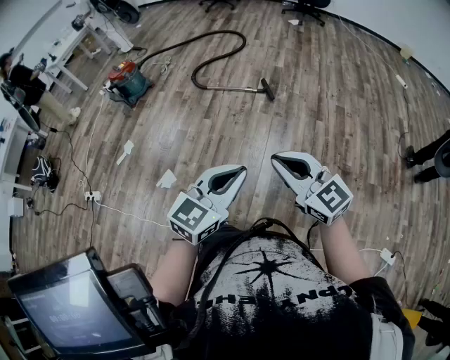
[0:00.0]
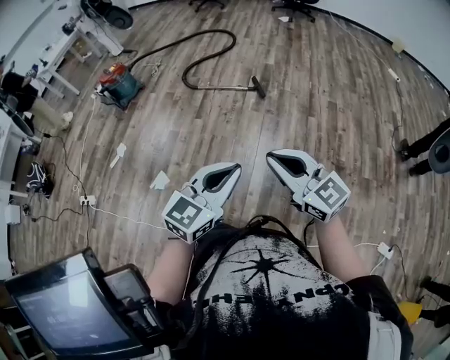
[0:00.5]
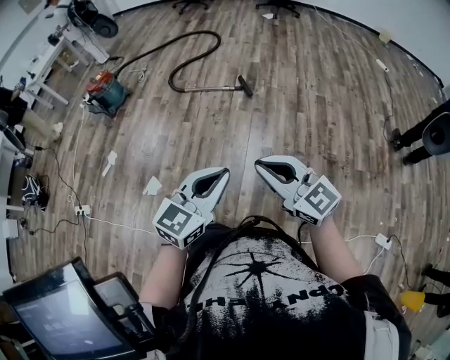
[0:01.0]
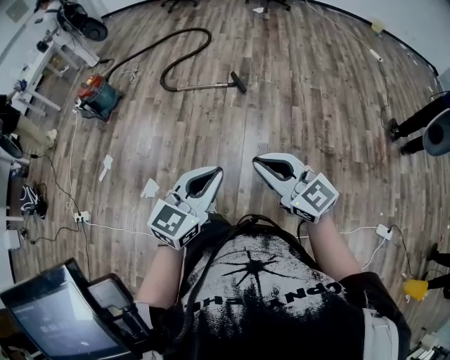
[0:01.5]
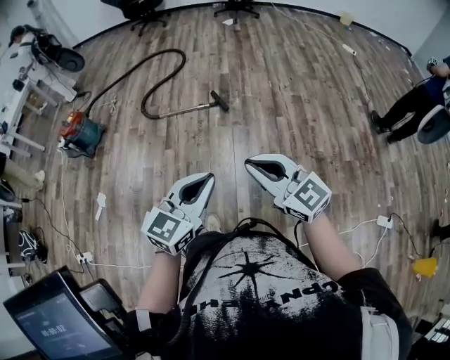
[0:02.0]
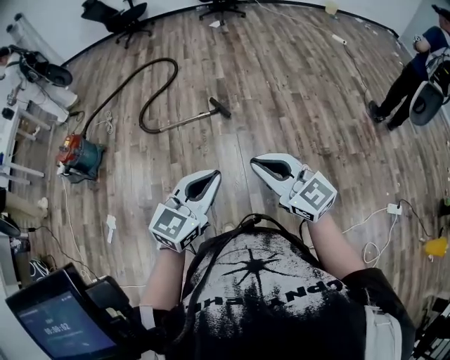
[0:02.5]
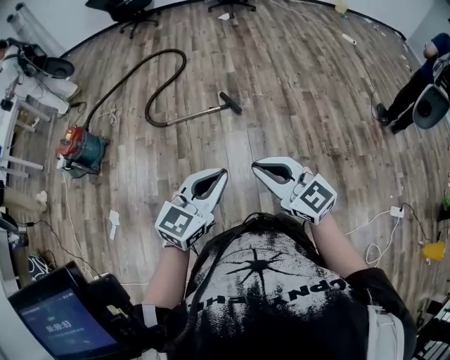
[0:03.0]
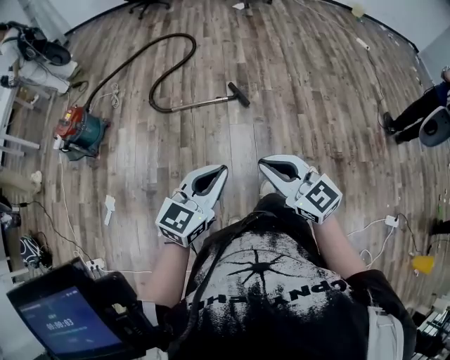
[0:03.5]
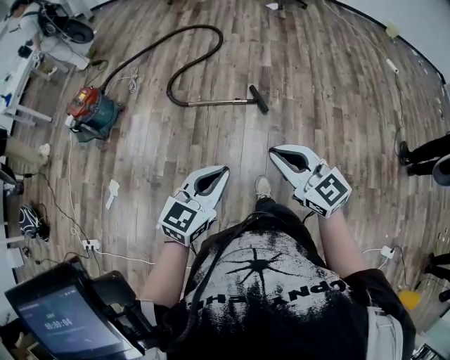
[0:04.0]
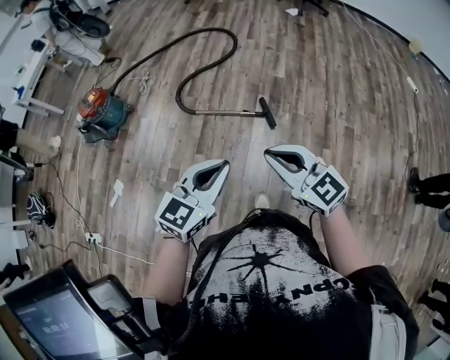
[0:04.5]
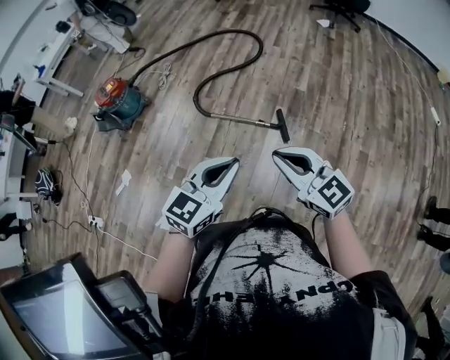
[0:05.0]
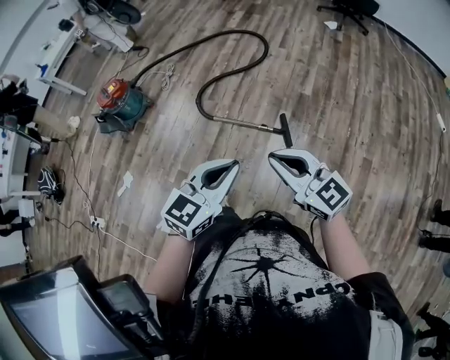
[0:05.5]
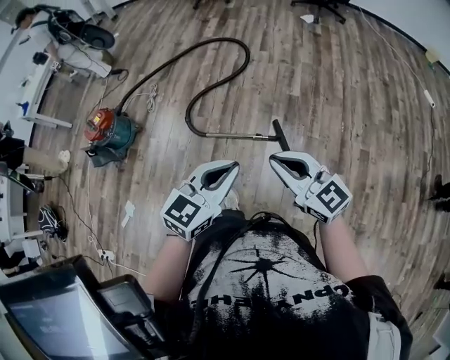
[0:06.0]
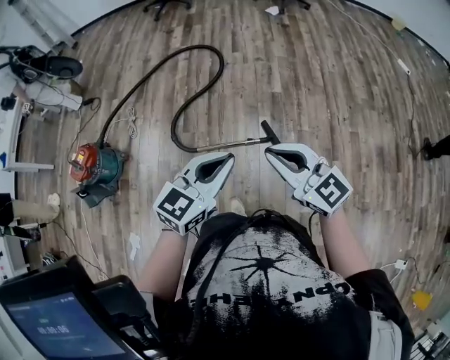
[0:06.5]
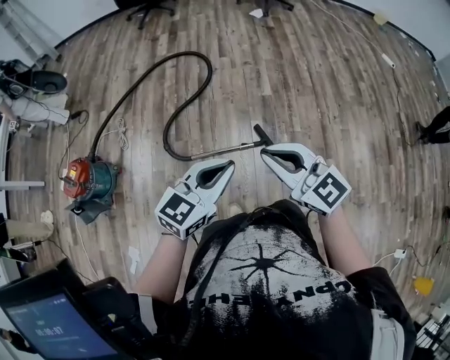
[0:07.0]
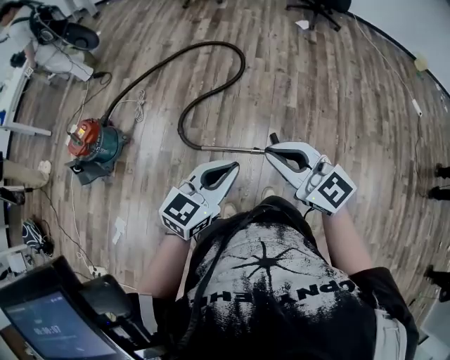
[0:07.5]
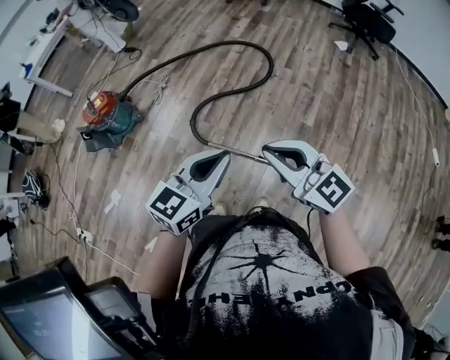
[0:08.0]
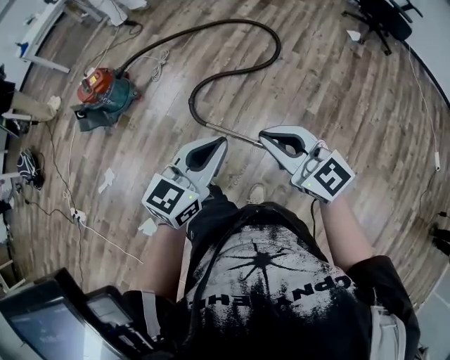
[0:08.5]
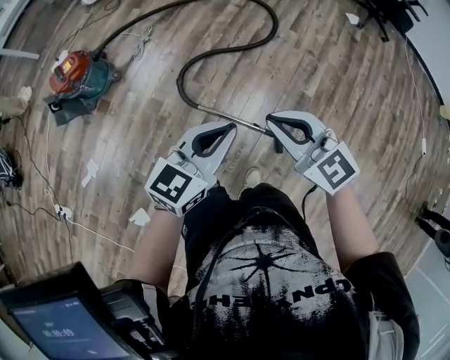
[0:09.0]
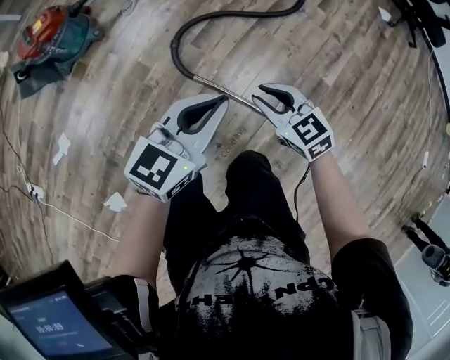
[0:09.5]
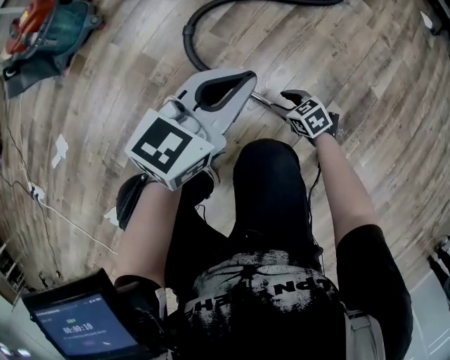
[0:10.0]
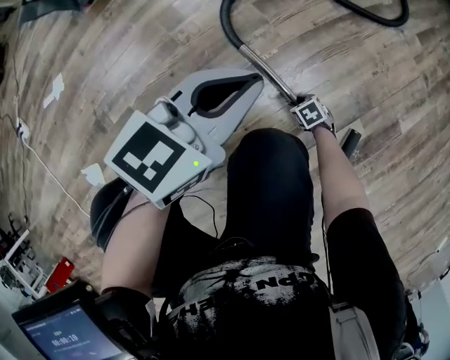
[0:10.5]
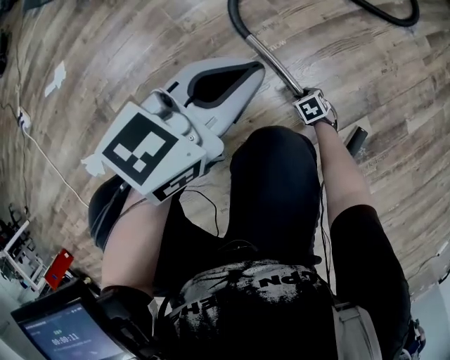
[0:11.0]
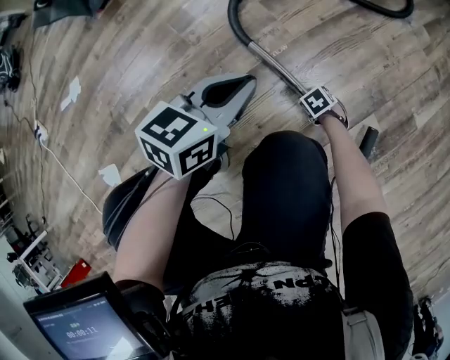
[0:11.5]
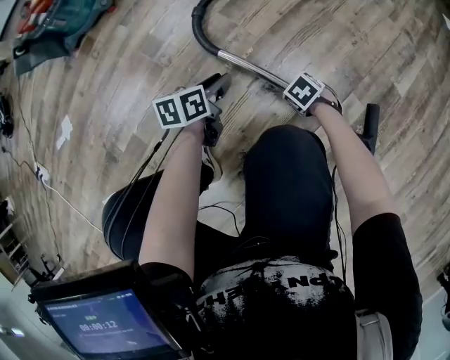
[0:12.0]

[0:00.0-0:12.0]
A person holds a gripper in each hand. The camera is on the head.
0:00.0 to 0:02.0: Both grippers move forward, some 10 cm.
0:02.0 to 0:04.0: The two grippers go about 30 cm forward and to the left.
0:04.0 to 0:06.0: The grippers both shift forward by approximately 30 cm.
0:06.0 to 0:08.0: The left gripper moves some 20 cm, while the right gripper moves some 20 cm.
0:08.0 to 0:10.0: The right gripper heads downward, covering some 80 cm, tilts its fingers about 50 degrees downward, and opens. Meanwhile the left gripper heads downward and forward, covering some 50 cm.
0:10.0 to 0:12.0: The right gripper travels downward by roughly 10 cm, and swivels about 30 degrees; the left gripper heads downward, covering some 30 cm, rotates around the line of its fingers by approximately 40 degrees, counterclockwise from behind, and opens up.

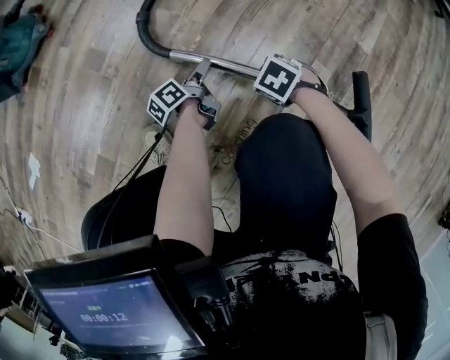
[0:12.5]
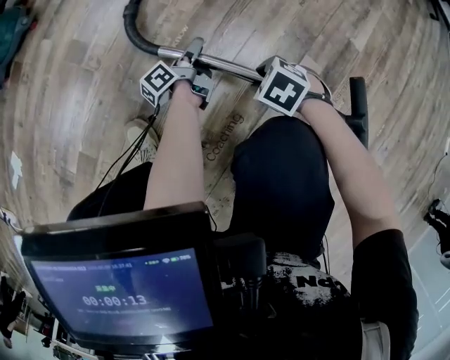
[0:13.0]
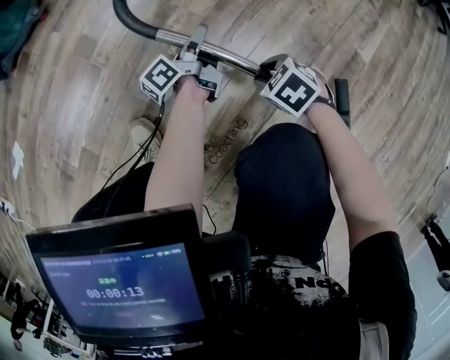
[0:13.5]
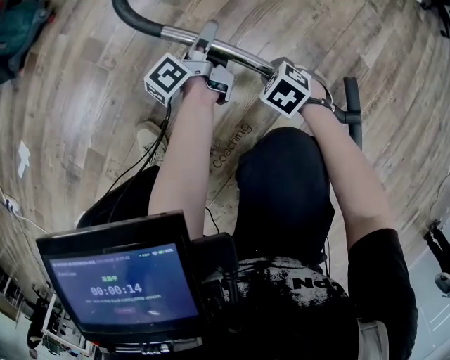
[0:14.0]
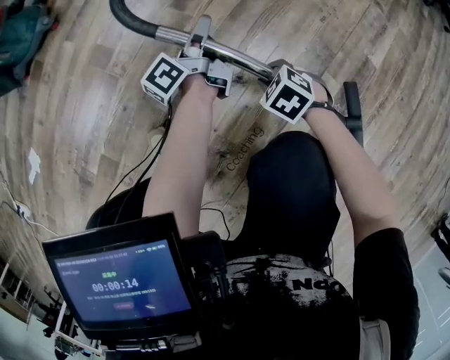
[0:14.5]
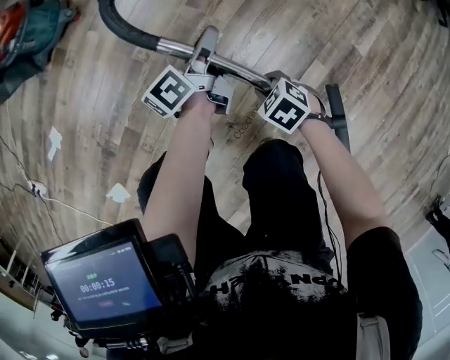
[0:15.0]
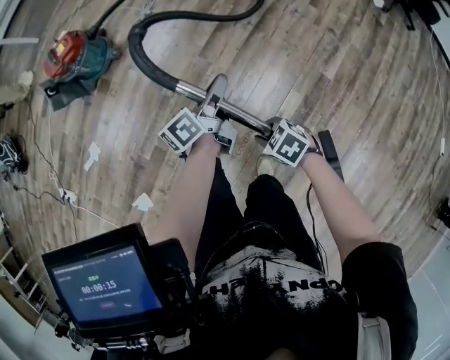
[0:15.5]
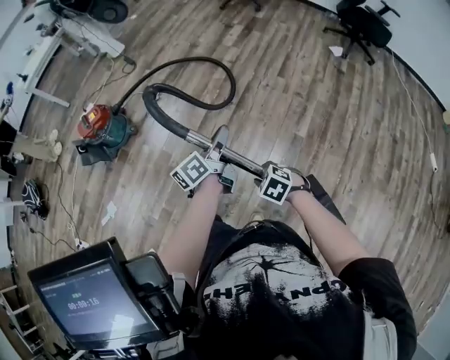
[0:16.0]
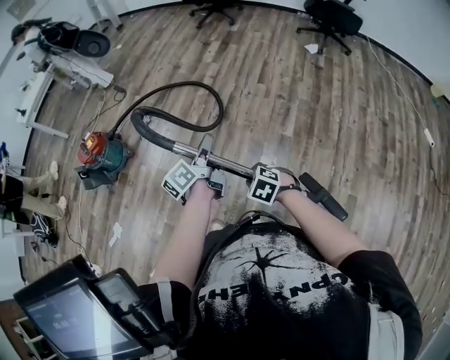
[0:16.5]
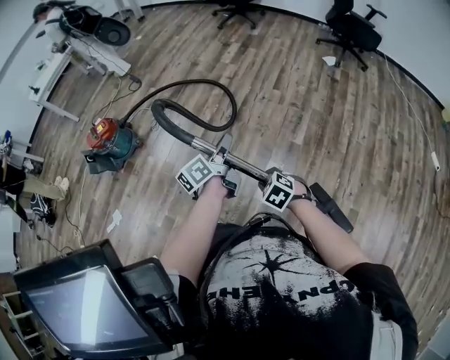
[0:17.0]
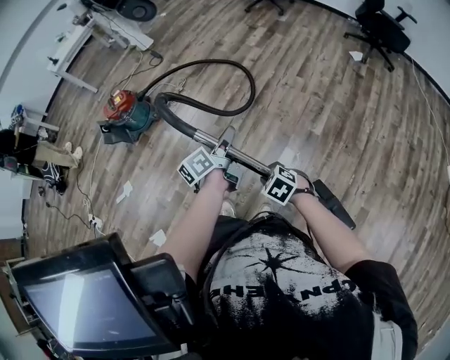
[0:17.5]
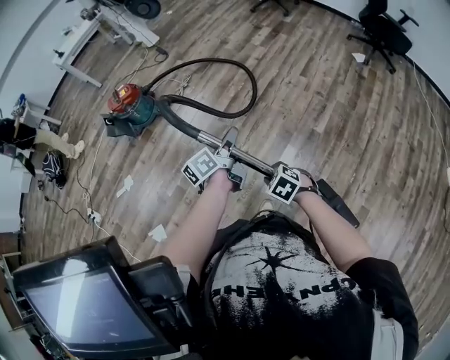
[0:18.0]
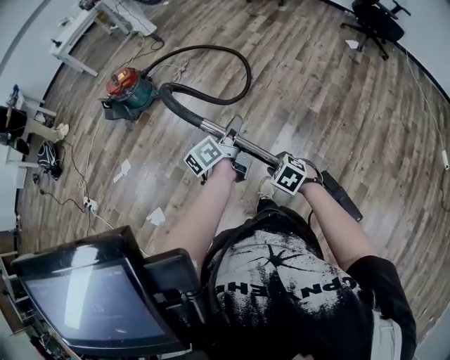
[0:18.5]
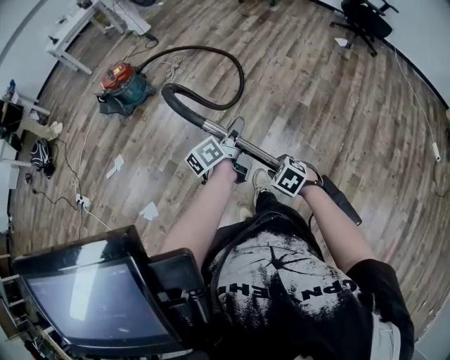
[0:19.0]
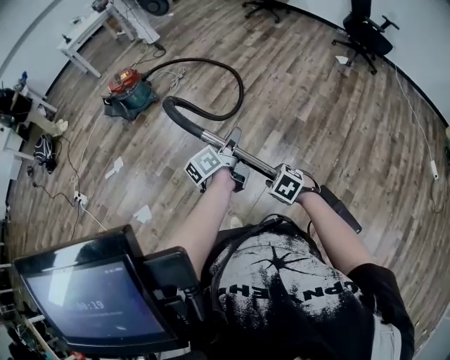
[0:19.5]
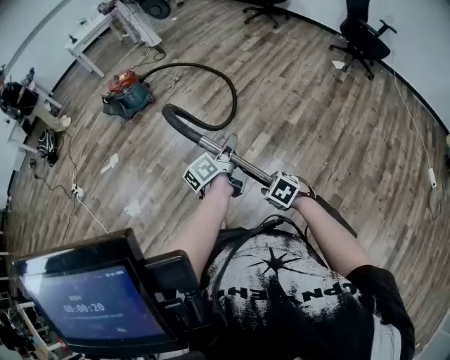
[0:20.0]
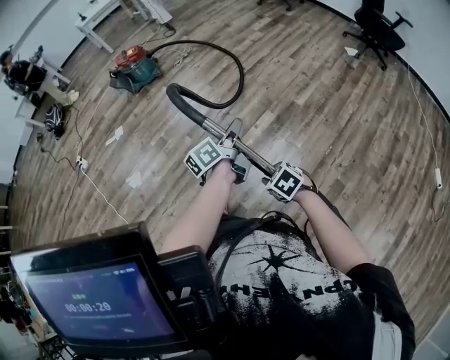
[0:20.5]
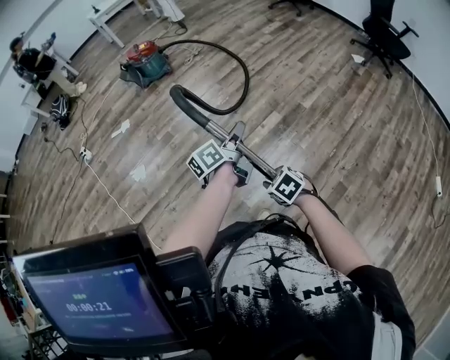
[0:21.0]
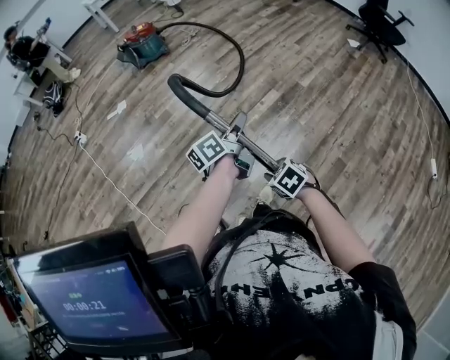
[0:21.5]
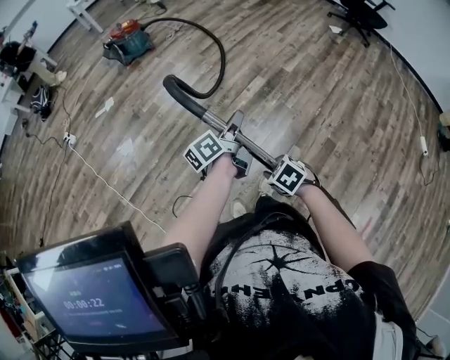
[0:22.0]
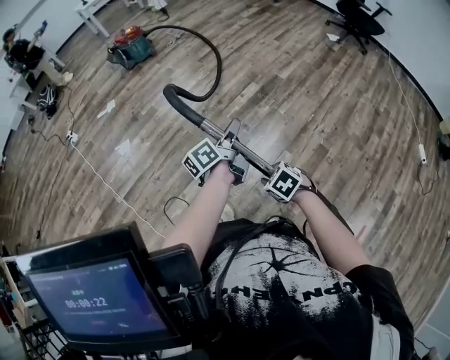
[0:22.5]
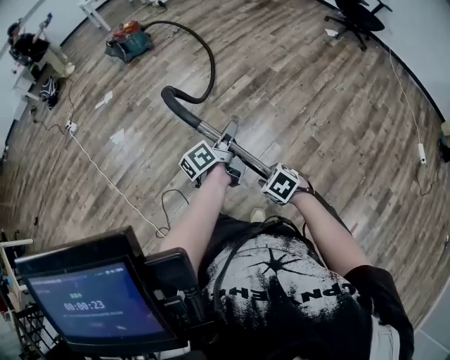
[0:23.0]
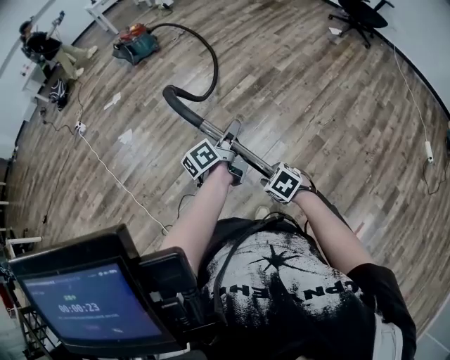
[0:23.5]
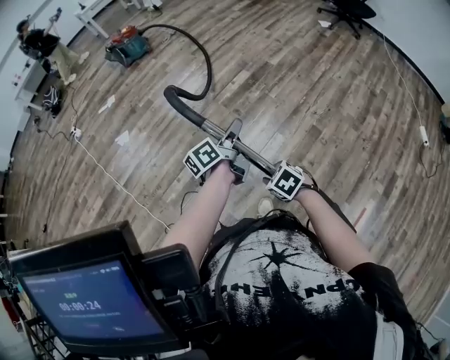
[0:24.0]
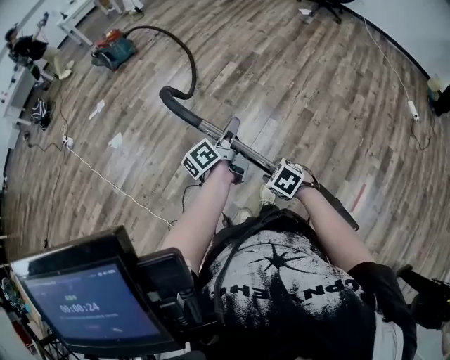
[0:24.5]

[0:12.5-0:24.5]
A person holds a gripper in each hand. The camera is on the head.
0:12.5 to 0:14.5: The left gripper heads upward, covering roughly 15 cm, changes its angle by some 30 degrees, and closes its fingers. The right gripper ends up some 5 cm from where it was, and closes up.
0:14.5 to 0:16.5: Both grippers travel together upward, about 60 cm. The left gripper turns by roughly 30 degrees.
0:16.5 to 0:18.5: Both grippers move backward and to the left, about 20 cm.
0:18.5 to 0:20.5: Both grippers move backward, about 30 cm.
0:20.5 to 0:22.5: The two grippers go approximately 30 cm backward.
0:22.5 to 0:24.5: Both grippers travel together backward, roughly 20 cm.

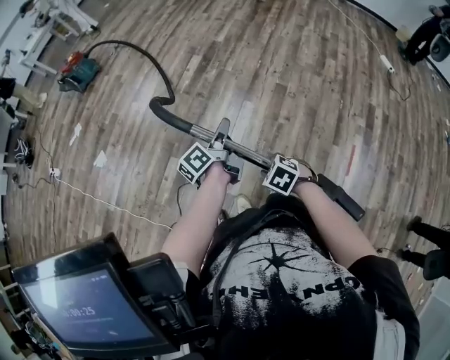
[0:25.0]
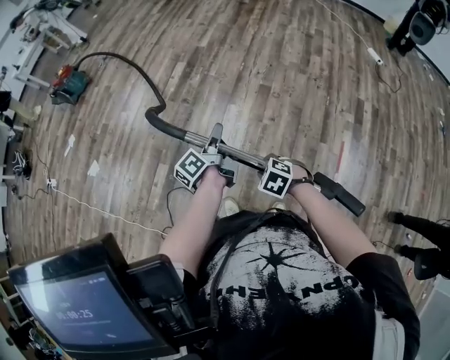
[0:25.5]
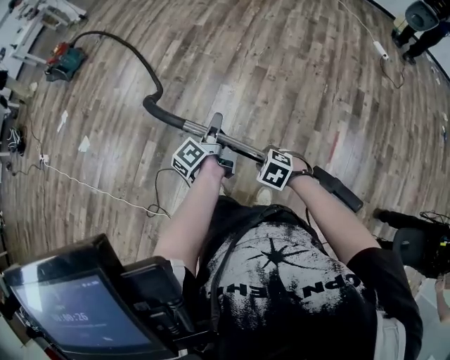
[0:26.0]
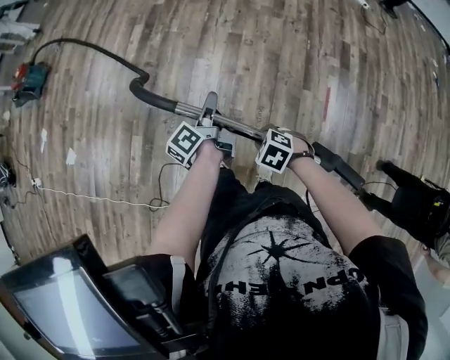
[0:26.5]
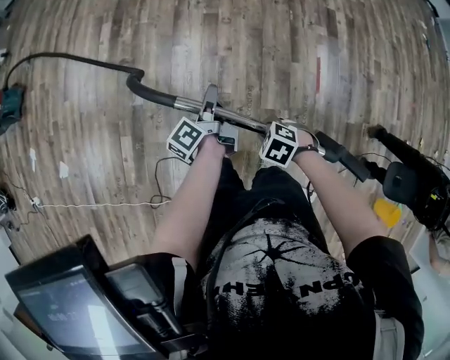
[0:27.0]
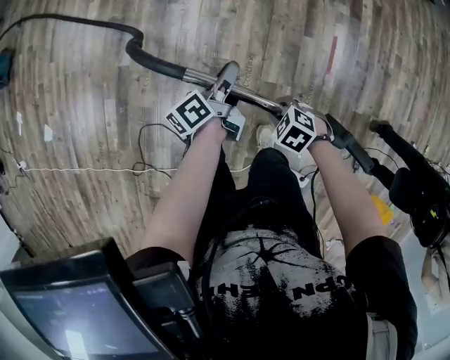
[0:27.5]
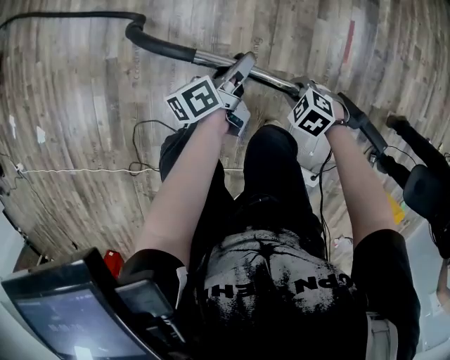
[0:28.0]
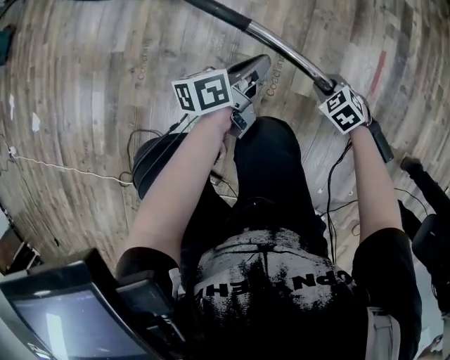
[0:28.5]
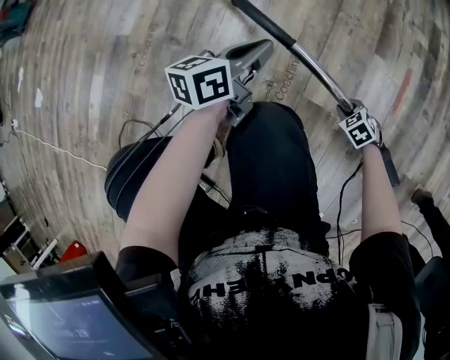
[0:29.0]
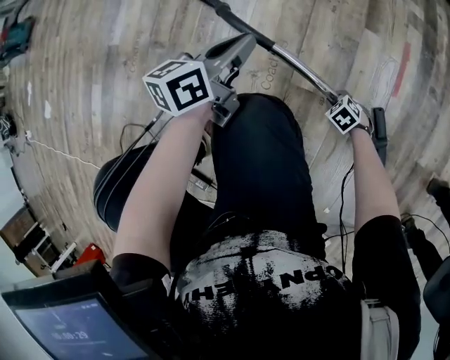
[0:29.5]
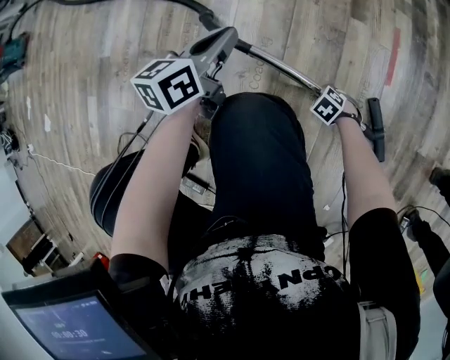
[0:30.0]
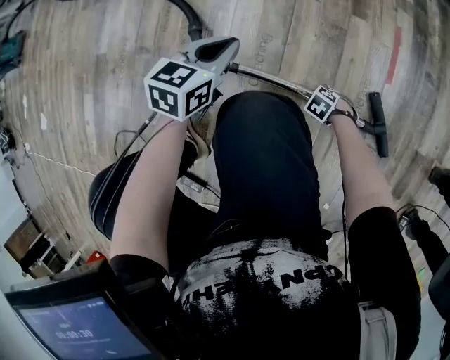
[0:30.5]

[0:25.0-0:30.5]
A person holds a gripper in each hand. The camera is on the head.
0:25.0 to 0:27.0: The right gripper changes place by some 25 cm, while the left gripper moves about 25 cm.
0:27.0 to 0:28.5: The two grippers go some 35 cm downward. The left gripper rotates some 30 degrees, and opens and closes again.
0:28.5 to 0:30.5: The right gripper travels downward by roughly 30 cm, changes its angle by approximately 20 degrees, and opens its fingers, while the left gripper moves downward, some 10 cm, and twists about 50 degrees clockwise, seen from behind.
